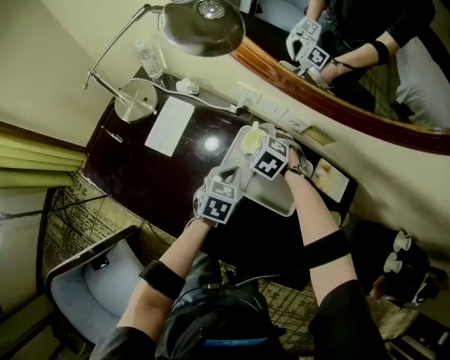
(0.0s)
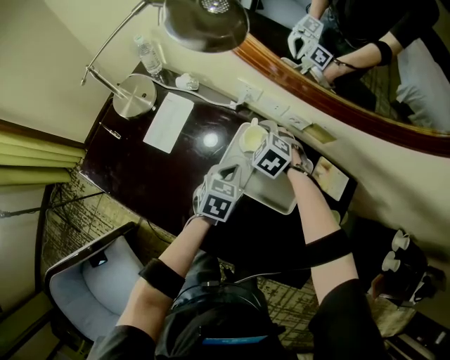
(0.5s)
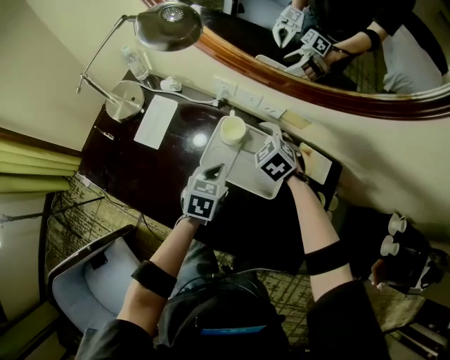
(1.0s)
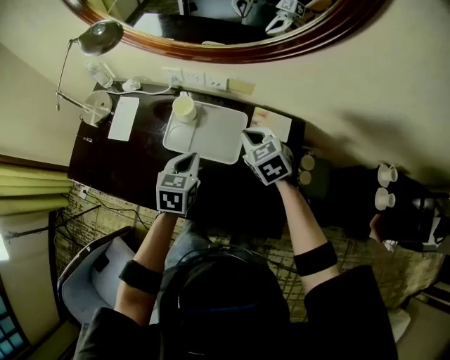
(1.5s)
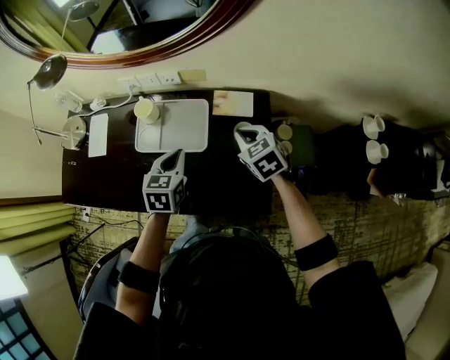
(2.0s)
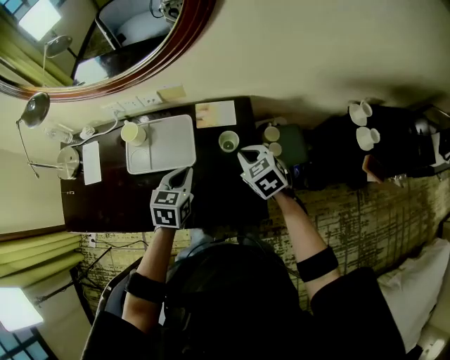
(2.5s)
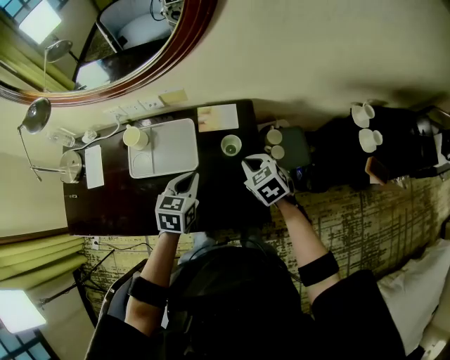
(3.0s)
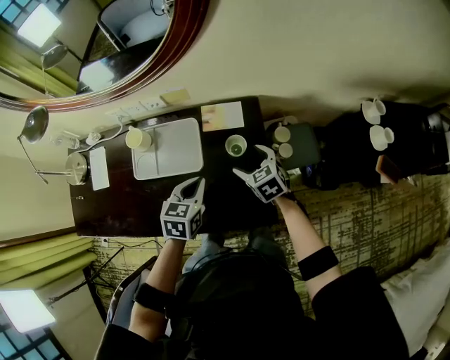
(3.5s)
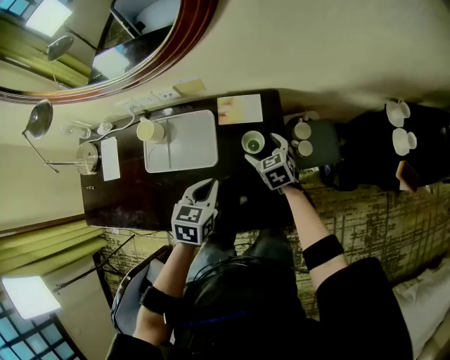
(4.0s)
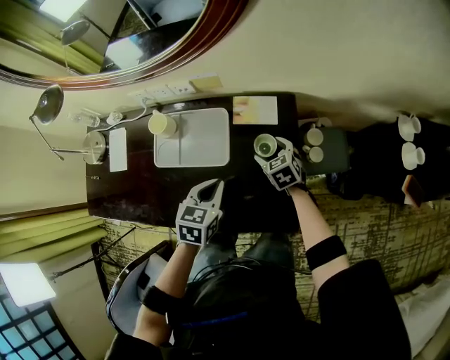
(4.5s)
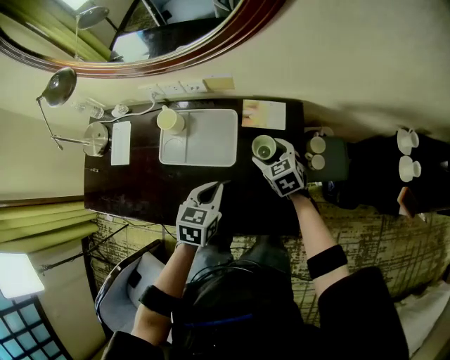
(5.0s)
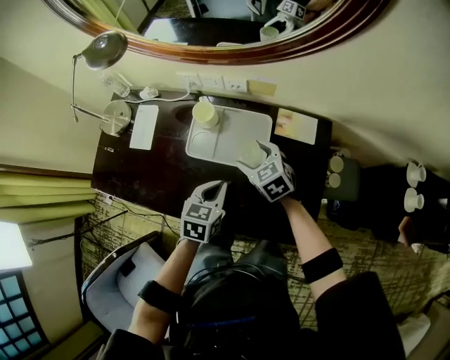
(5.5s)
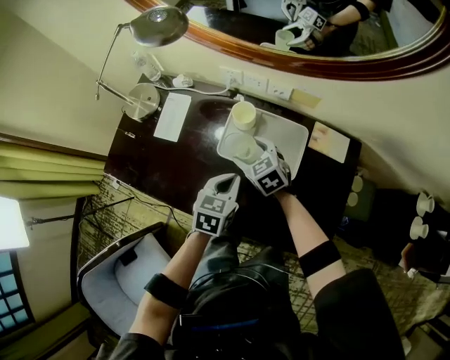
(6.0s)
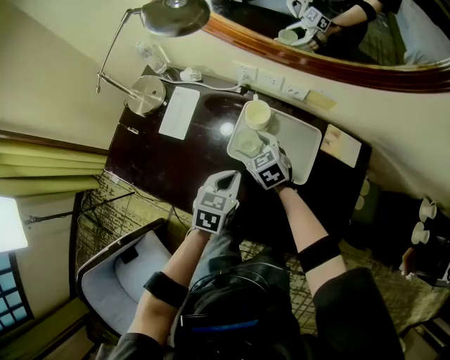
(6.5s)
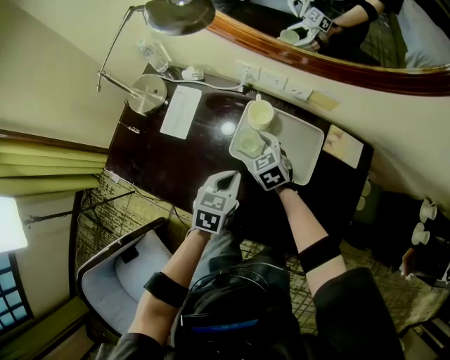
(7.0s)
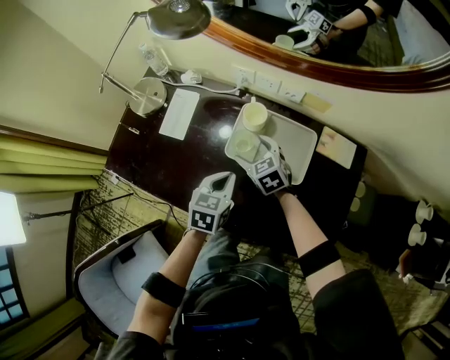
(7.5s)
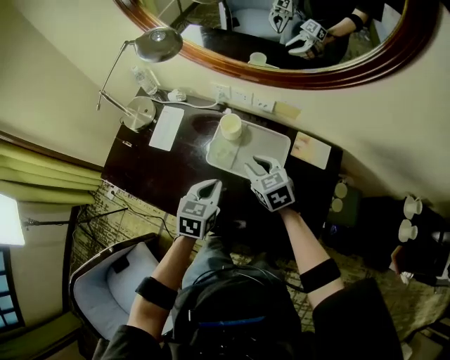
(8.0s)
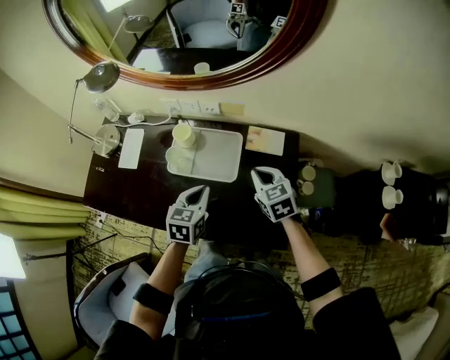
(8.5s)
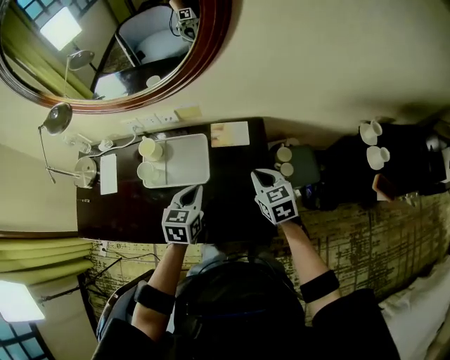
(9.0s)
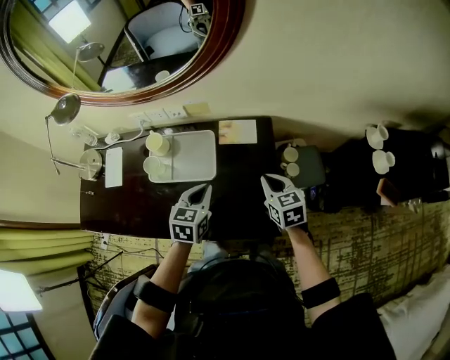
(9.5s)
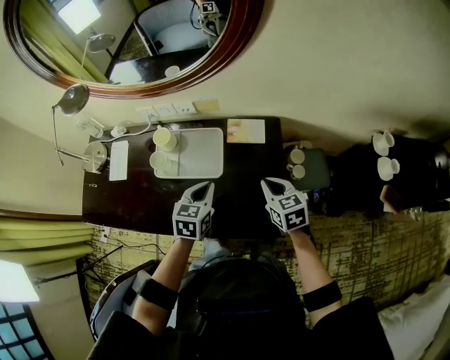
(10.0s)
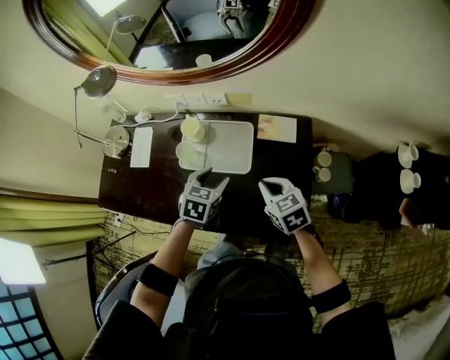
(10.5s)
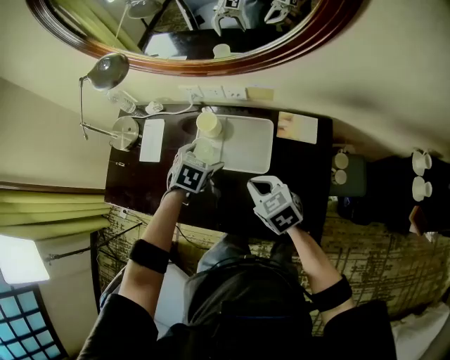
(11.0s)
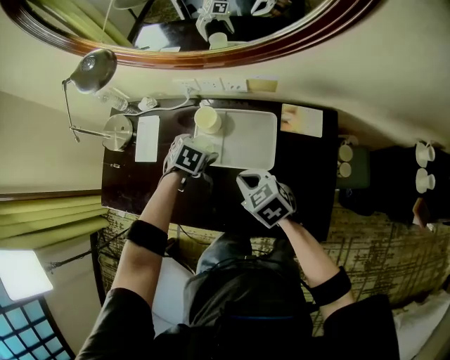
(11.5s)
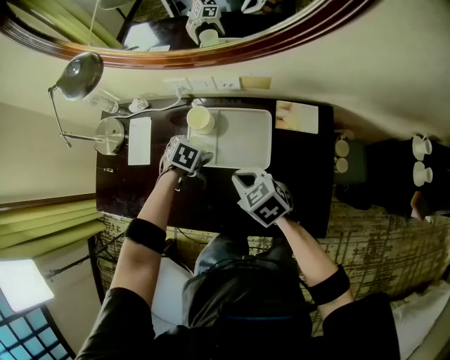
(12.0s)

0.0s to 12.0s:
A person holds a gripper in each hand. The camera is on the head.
0.0s to 2.0s: The right gripper heads to the right, backward and upward, covering approximately 40 cm, twists about 40 degrees clockwise, seen from behind, and closes up. Meanwhile the left gripper travels to the right, backward and upward by some 25 cm.
2.0s to 4.0s: The right gripper goes some 15 cm downward and to the right, and opens its fingers. Meanwhile the left gripper moves to the right, roughly 10 cm.
4.0s to 6.0s: The left gripper moves to the left, some 20 cm, while the right gripper shifts about 40 cm to the left, and changes its angle by about 30 degrees.
6.0s to 8.0s: The right gripper heads upward and to the right, covering approximately 10 cm, and closes up.
8.0s to 10.0s: The right gripper shifts roughly 30 cm to the right, and swivels about 30 degrees. Meanwhile the left gripper shifts approximately 20 cm to the right.
10.0s to 12.0s: The right gripper moves to the left, some 25 cm, and turns by some 30 degrees. The left gripper moves to the left, forward and downward, roughly 30 cm, tilts its fingers roughly 30 degrees downward, and opens its fingers.

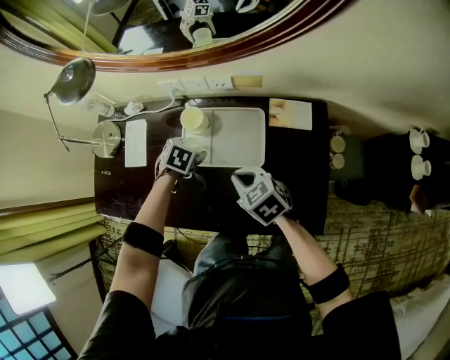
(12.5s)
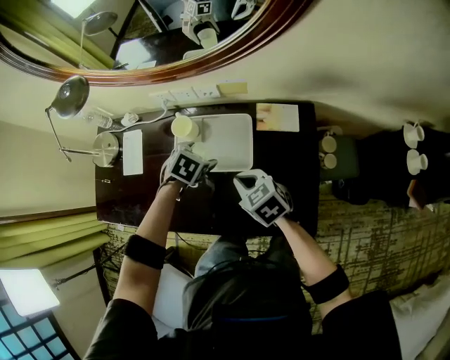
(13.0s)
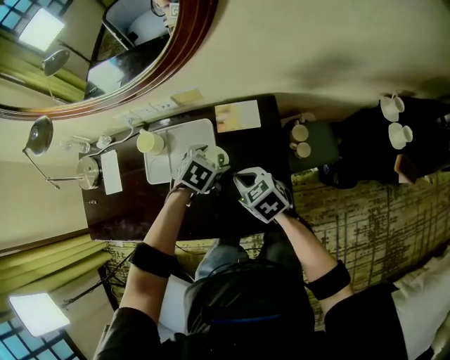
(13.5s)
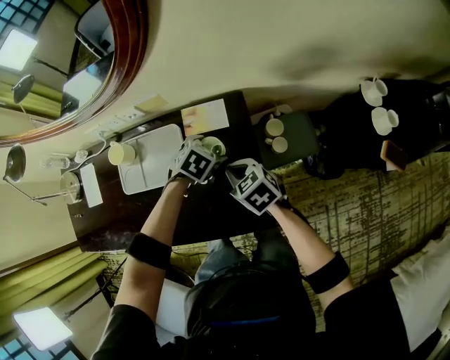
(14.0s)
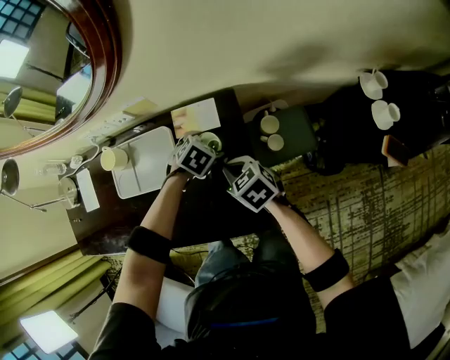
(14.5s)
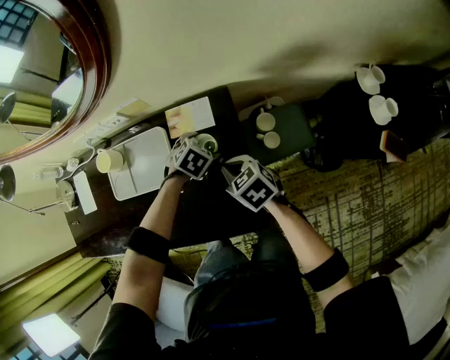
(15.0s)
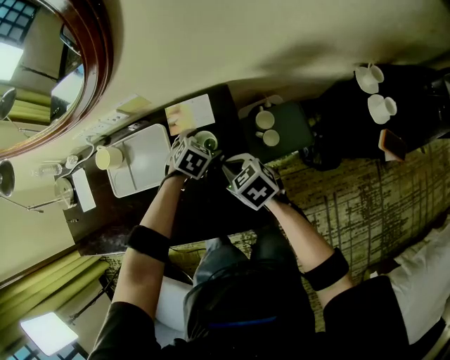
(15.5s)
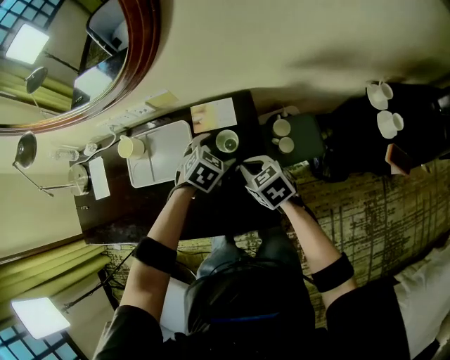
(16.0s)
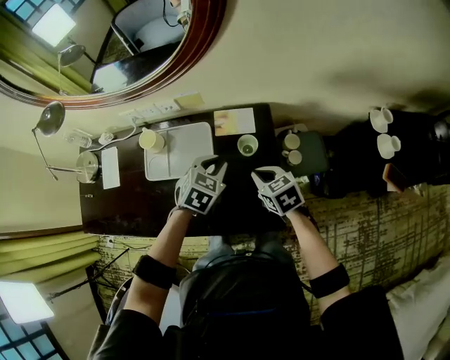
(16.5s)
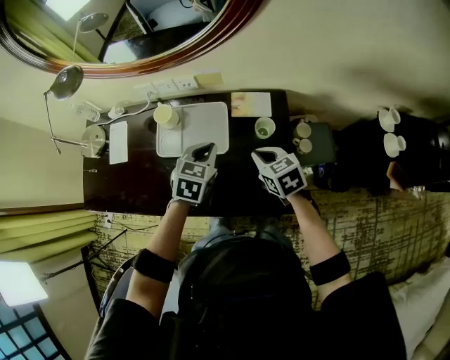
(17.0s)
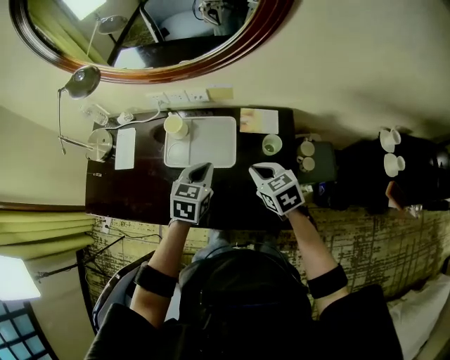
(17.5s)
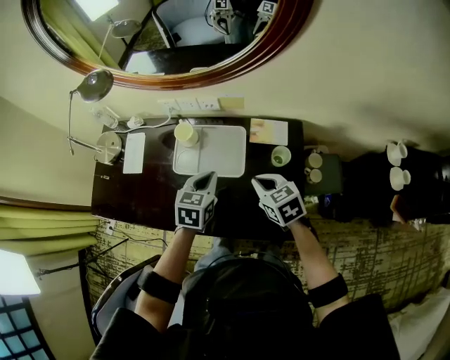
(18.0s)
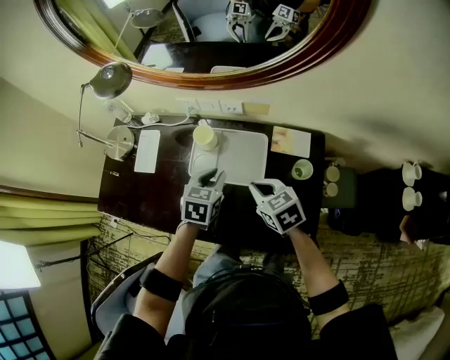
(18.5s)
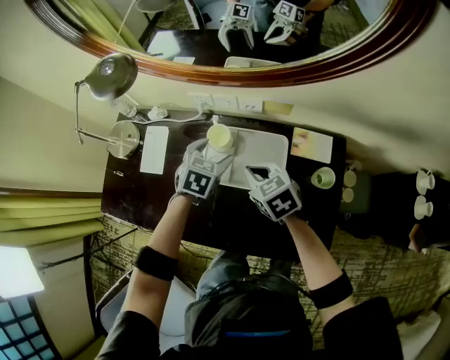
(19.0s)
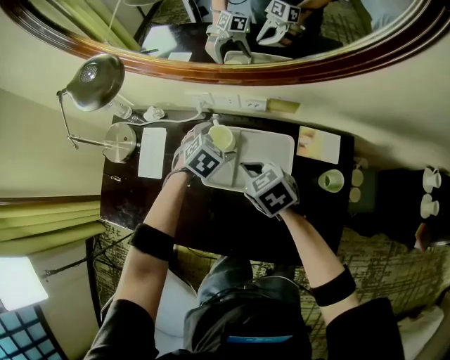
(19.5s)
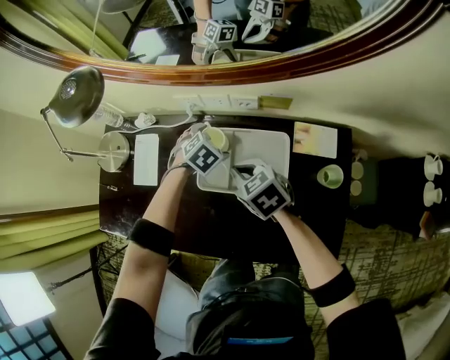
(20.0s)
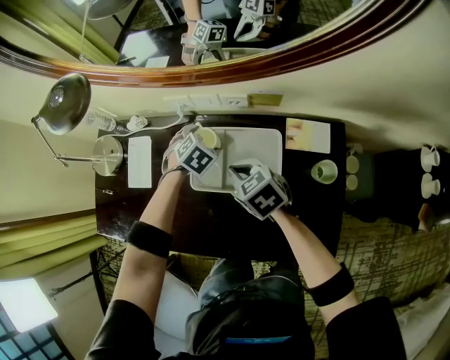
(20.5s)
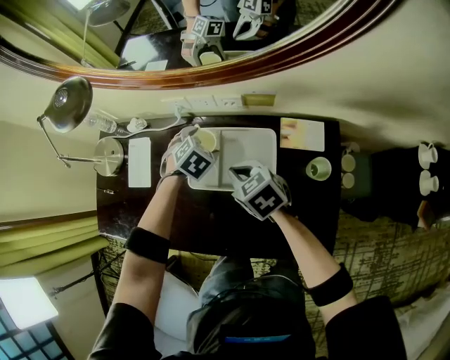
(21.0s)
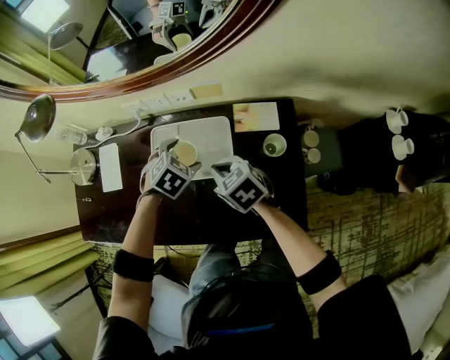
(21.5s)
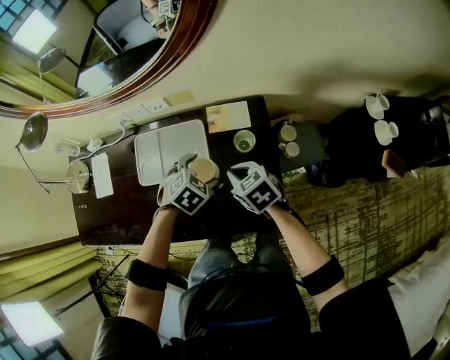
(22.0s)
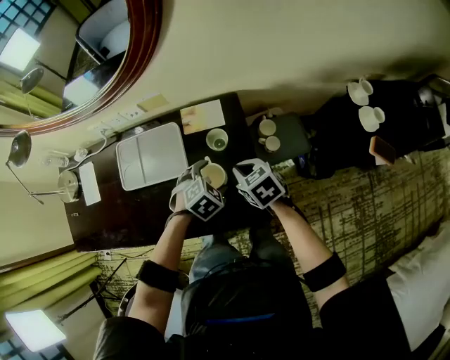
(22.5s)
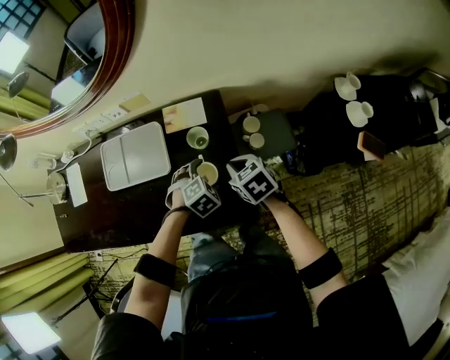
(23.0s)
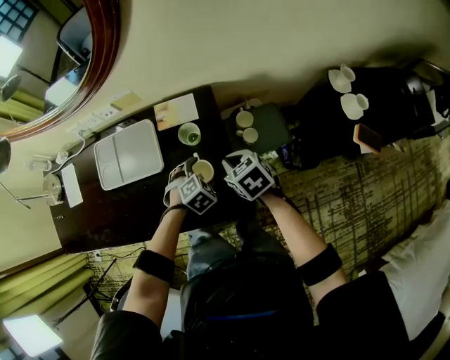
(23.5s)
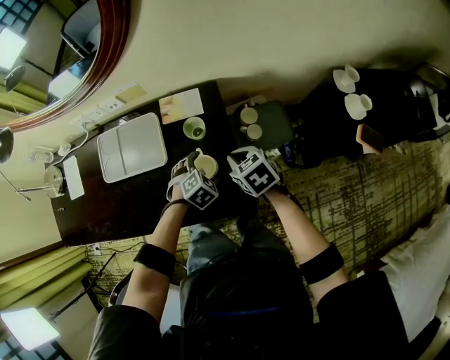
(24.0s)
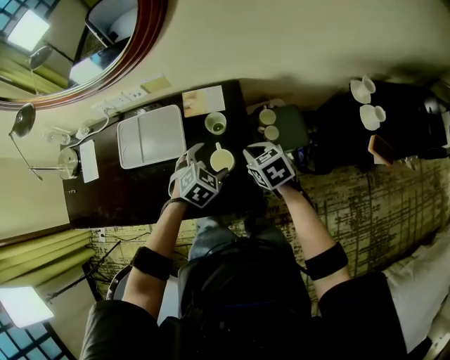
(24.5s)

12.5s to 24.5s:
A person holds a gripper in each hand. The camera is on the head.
12.5s to 14.5s: The grippers both shift to the right by roughly 35 cm. The left gripper swivels roughly 30 degrees.
14.5s to 16.5s: The right gripper shifts about 5 cm upward; the left gripper moves upward, to the left and backward, some 20 cm, turns by about 20 degrees, and closes up.
16.5s to 18.5s: The two grippers go roughly 20 cm to the left. The left gripper rotates approximately 30 degrees.
18.5s to 20.5s: The left gripper shifts roughly 25 cm forward and downward, rotates about 40 degrees, and opens its fingers. Meanwhile the right gripper goes some 15 cm forward, to the left and downward.
20.5s to 22.5s: The grippers both shift to the right and backward by some 40 cm. The left gripper rotates about 20 degrees. Meanwhile the right gripper turns by roughly 20 degrees.
22.5s to 24.5s: The left gripper goes downward and returns, some 5 cm each way.

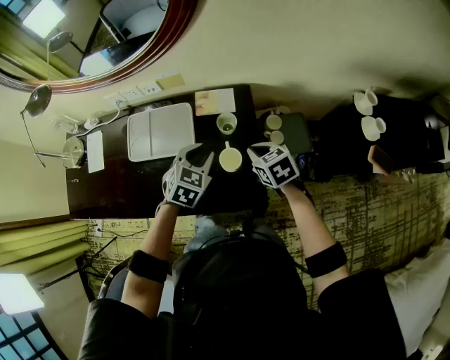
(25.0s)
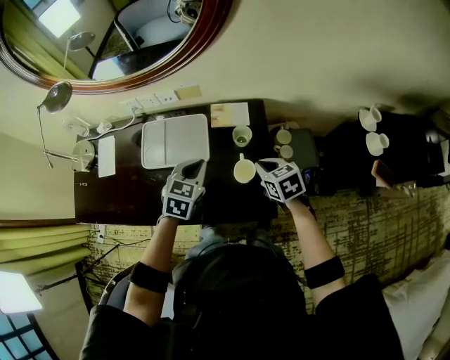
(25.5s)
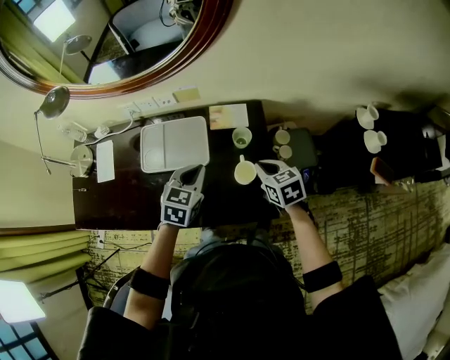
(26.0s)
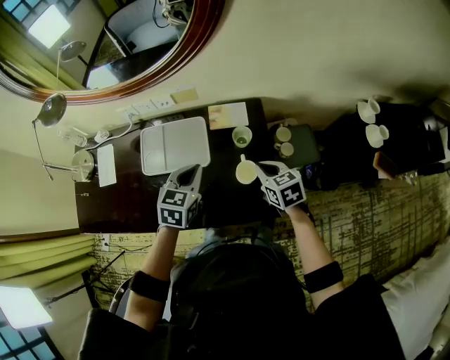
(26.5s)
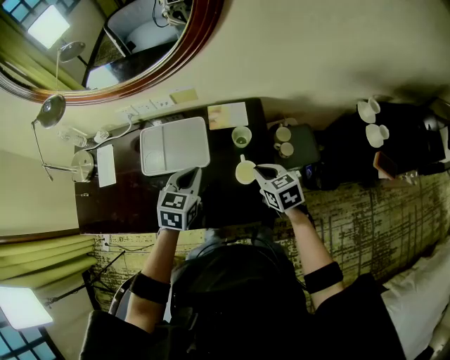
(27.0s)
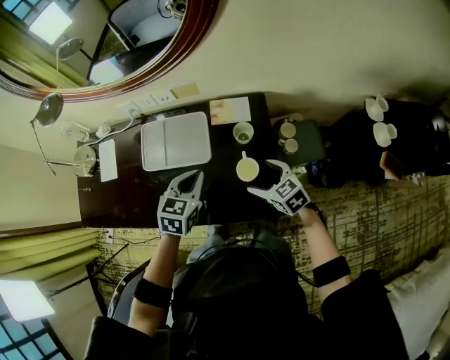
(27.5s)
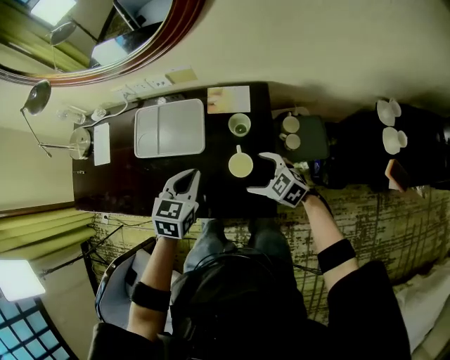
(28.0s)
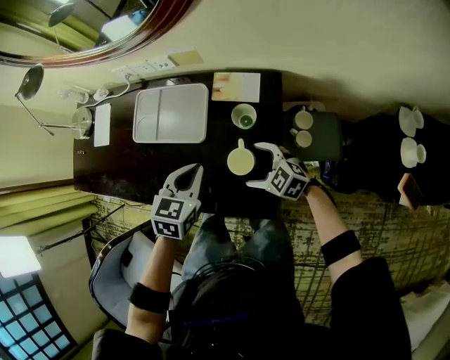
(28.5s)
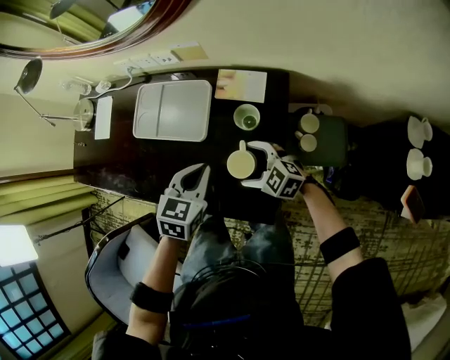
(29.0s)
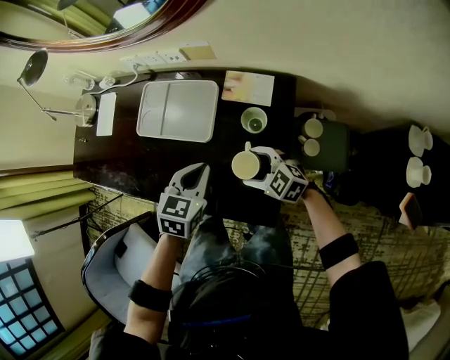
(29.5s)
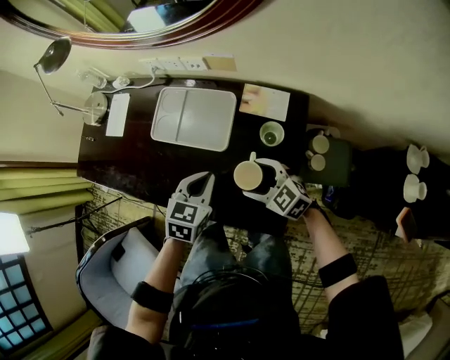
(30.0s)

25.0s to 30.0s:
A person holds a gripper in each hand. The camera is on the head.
25.0s to 27.5s: The right gripper moves about 5 cm, and opens up. The left gripper travels to the left by approximately 10 cm.
27.5s to 30.0s: The left gripper moves downward, about 5 cm, while the right gripper travels to the left by approximately 5 cm, and rotates some 40 degrees.
